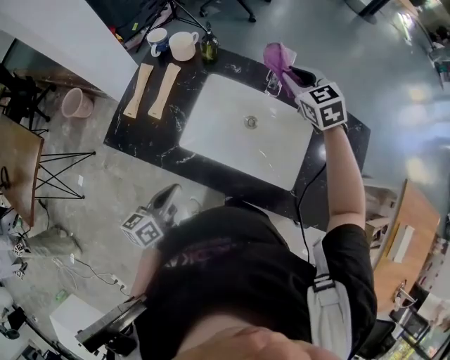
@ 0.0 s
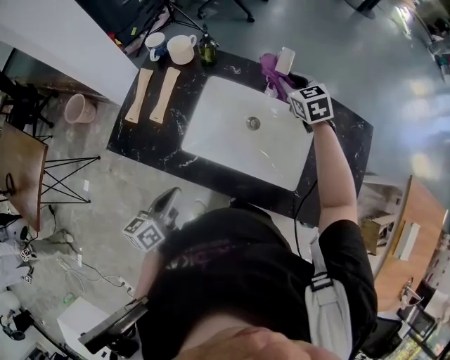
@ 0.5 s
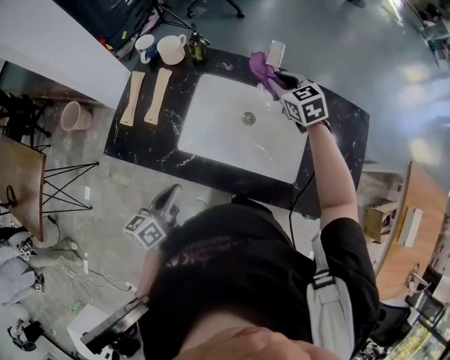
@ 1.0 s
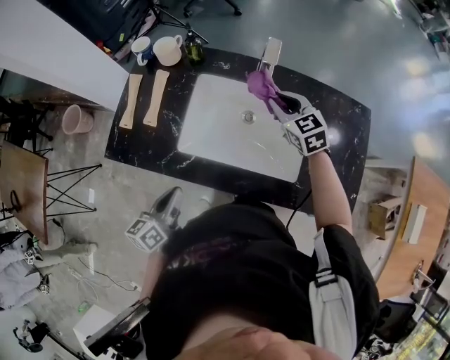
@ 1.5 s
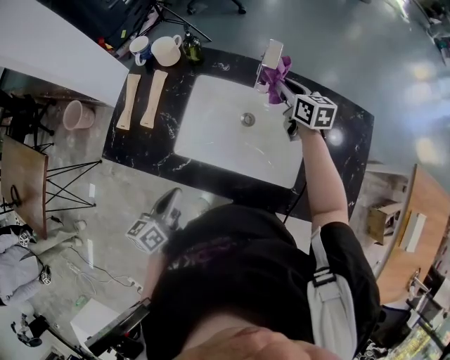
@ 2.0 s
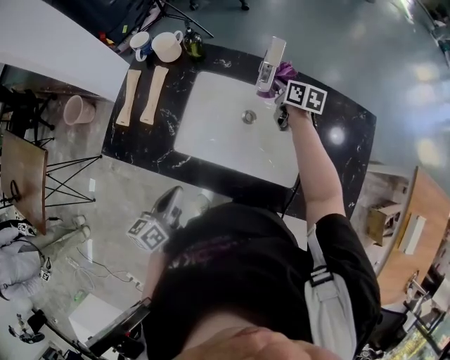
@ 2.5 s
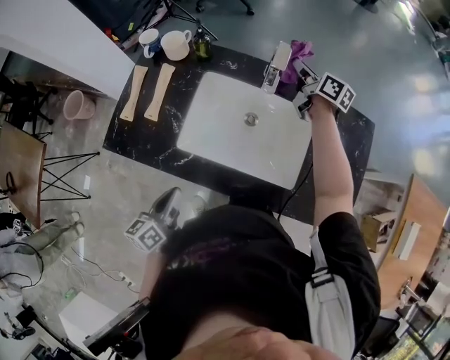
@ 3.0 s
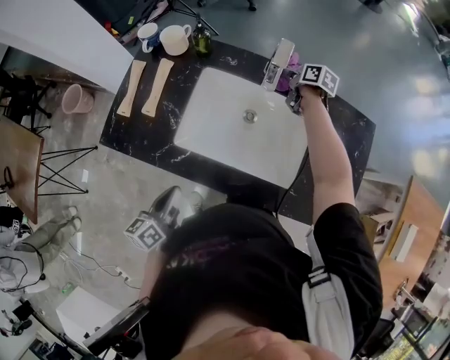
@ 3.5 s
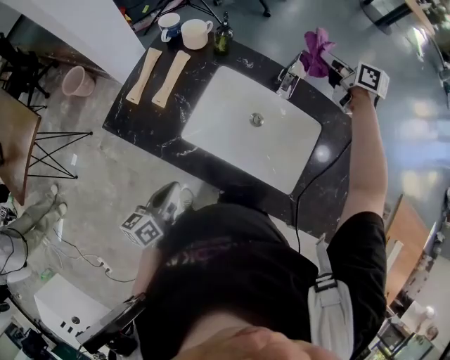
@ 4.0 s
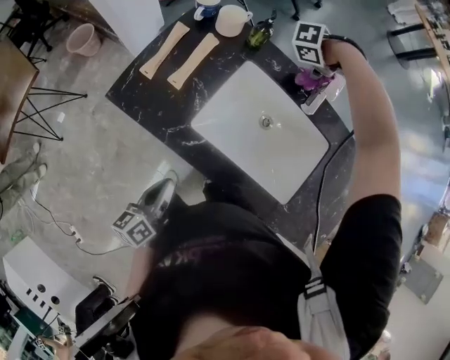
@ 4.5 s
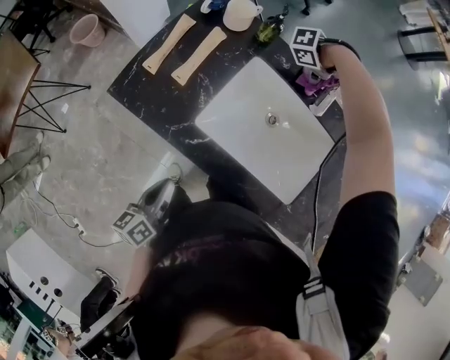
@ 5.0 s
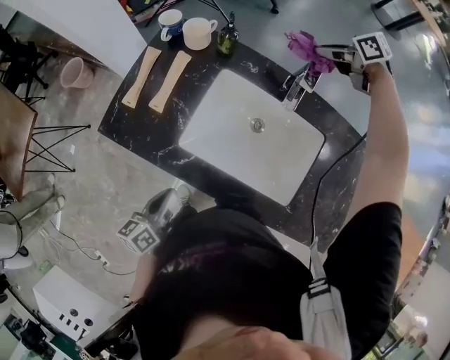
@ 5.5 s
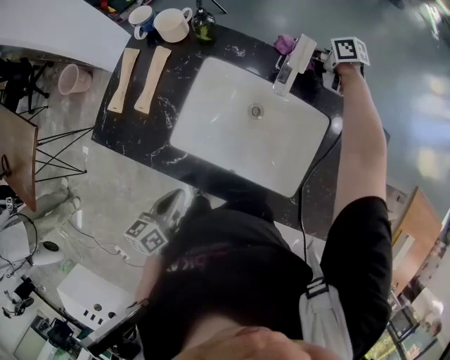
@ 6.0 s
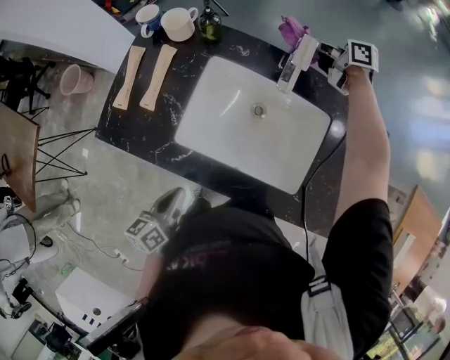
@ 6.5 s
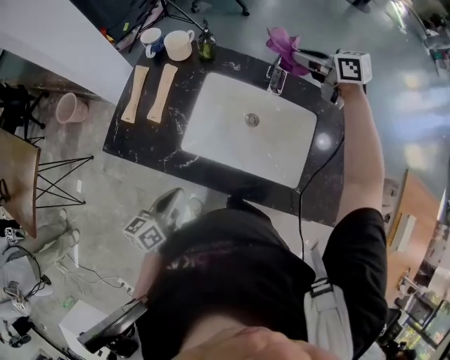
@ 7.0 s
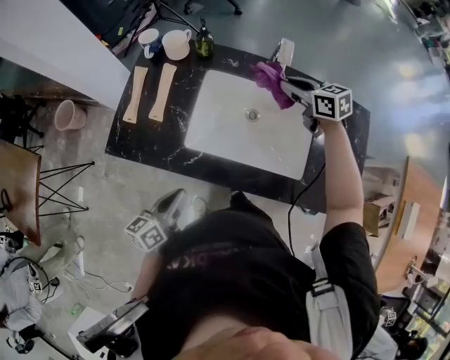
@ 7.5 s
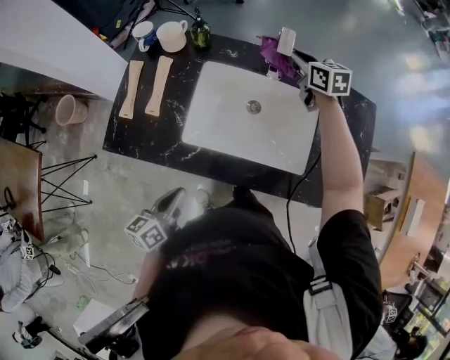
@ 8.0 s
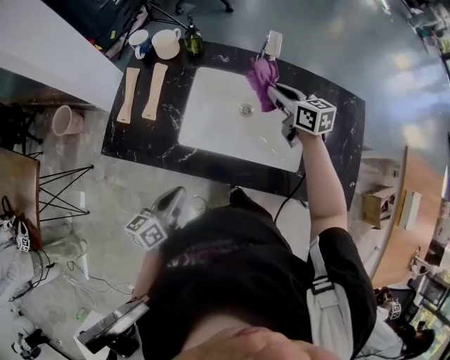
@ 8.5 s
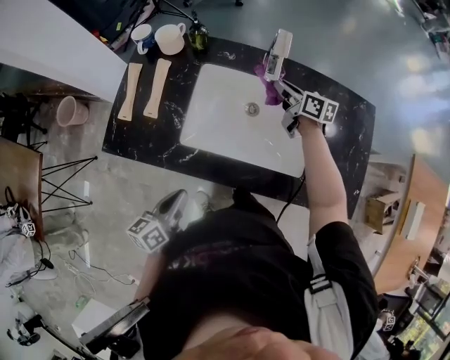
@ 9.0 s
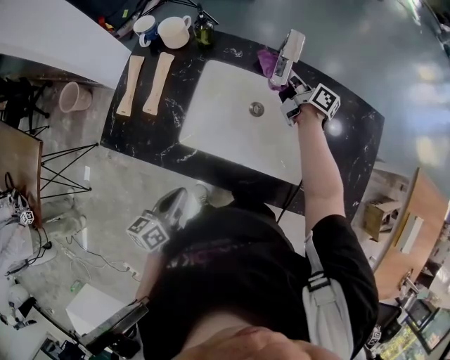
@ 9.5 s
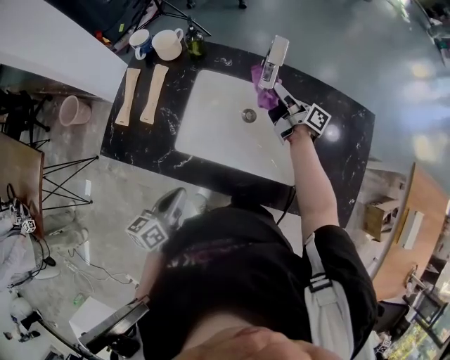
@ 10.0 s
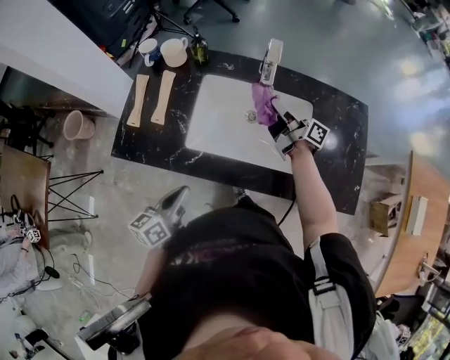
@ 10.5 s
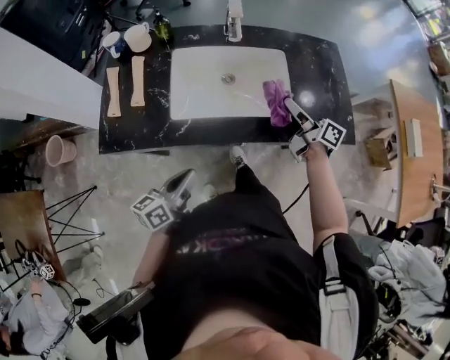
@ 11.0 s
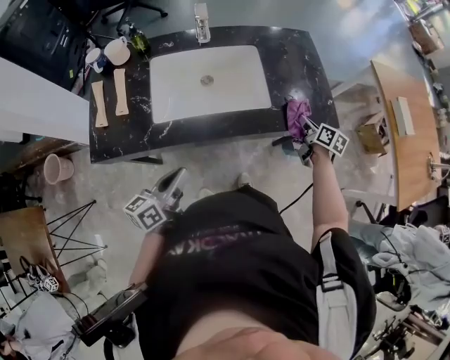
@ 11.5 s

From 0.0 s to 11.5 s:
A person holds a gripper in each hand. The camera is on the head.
From 0.0 s to 2.0 s: The right gripper is displaced downward by roughly 10 cm, and rolls clockwise, seen from behind, by about 40 degrees.
From 2.0 s to 4.0 s: The right gripper moves up and down over about 20 cm, changing direction 3 times.
From 4.0 s to 6.0 s: The right gripper swings up and down, some 20 cm each way, with 2 reversals, and turns by approximately 20 degrees.
From 6.0 s to 7.5 s: The right gripper shifts approximately 20 cm backward, upward and to the left, and turns by roughly 30 degrees. Meanwhile the left gripper goes approximately 5 cm to the left.
From 7.5 s to 9.5 s: The right gripper moves forward and backward over some 10 cm, changing direction 2 times, and twists roughly 50 degrees clockwise, seen from behind.
From 9.5 s to 11.5 s: The left gripper changes place by roughly 10 cm, and turns by roughly 30 degrees. The right gripper reaches about 5 cm upward, then returns, and changes its angle by some 40 degrees.

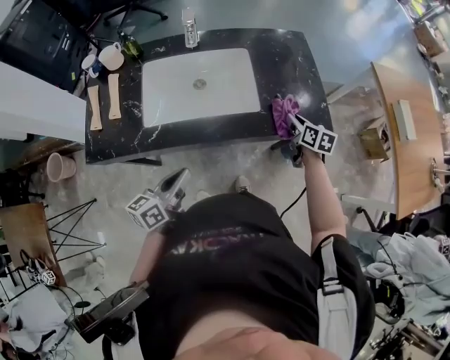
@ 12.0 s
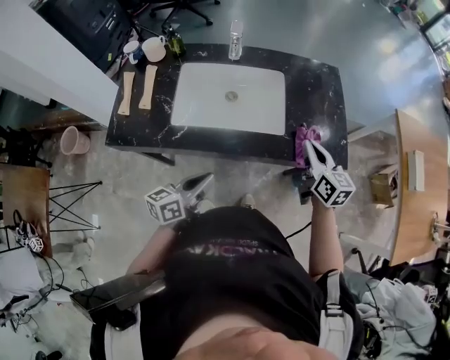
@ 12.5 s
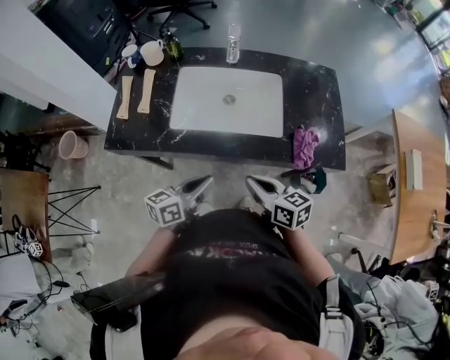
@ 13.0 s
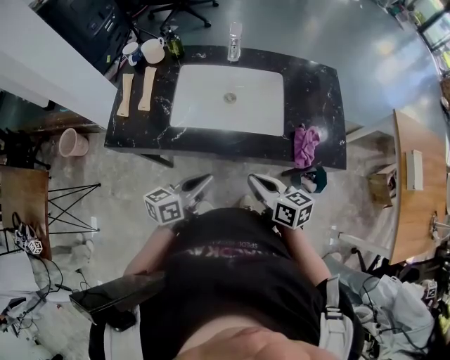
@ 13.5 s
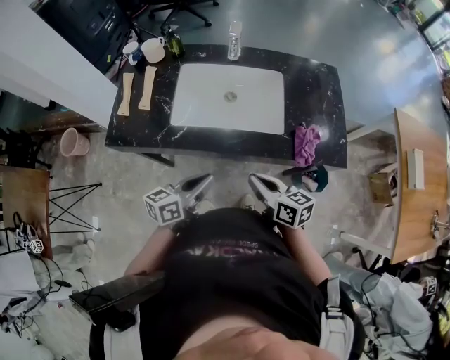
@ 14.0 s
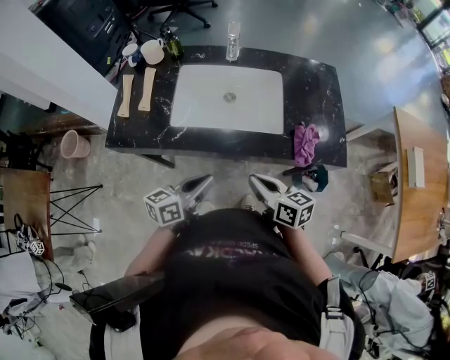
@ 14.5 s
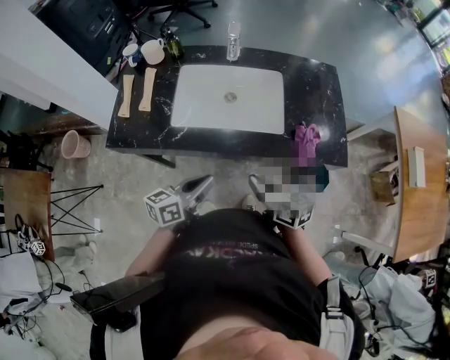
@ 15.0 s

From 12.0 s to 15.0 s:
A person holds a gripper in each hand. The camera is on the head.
From 12.0 s to 13.5 s: The right gripper heads to the left and backward, covering about 30 cm, turns by roughly 40 degrees, and closes.
From 13.5 s to 15.0 s: Both grippers stay put.

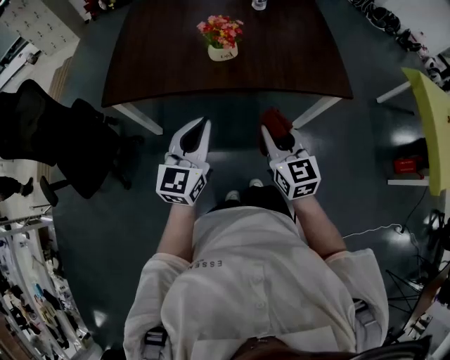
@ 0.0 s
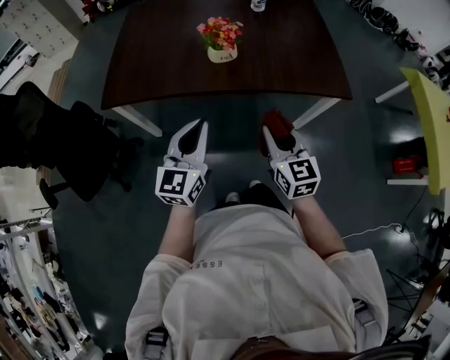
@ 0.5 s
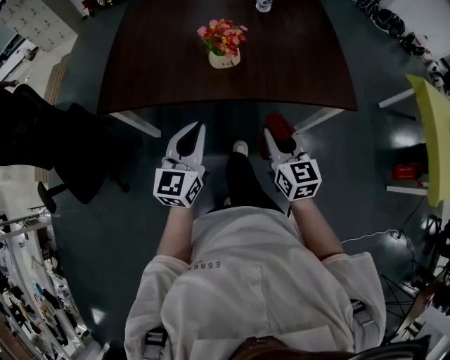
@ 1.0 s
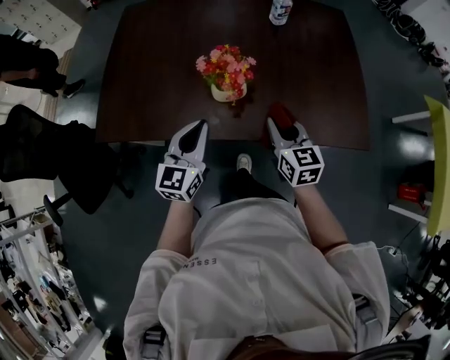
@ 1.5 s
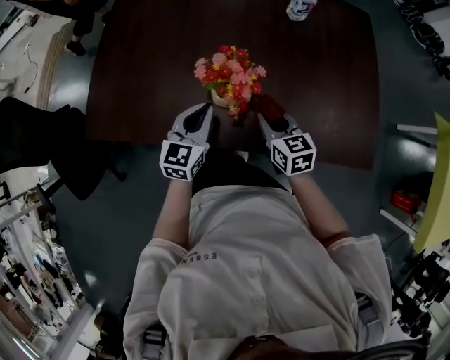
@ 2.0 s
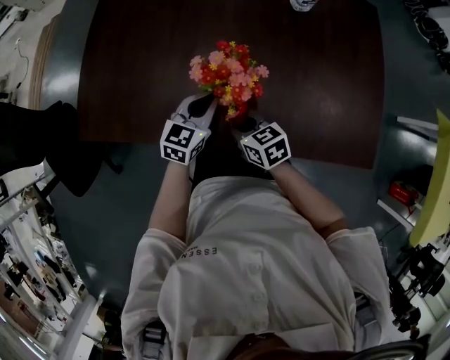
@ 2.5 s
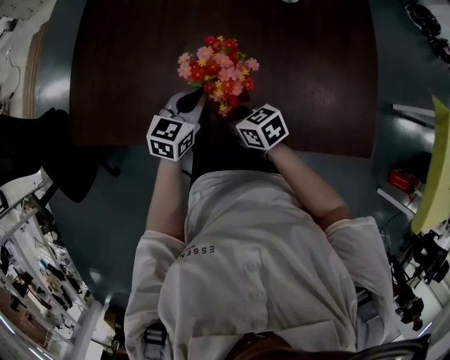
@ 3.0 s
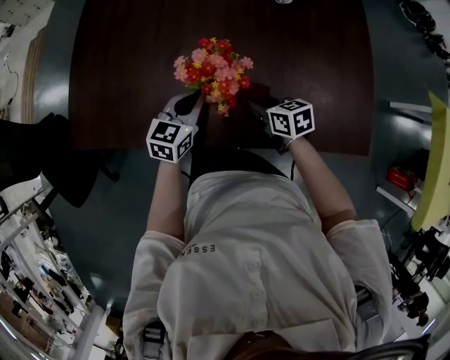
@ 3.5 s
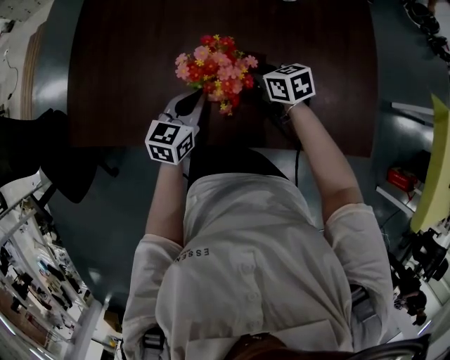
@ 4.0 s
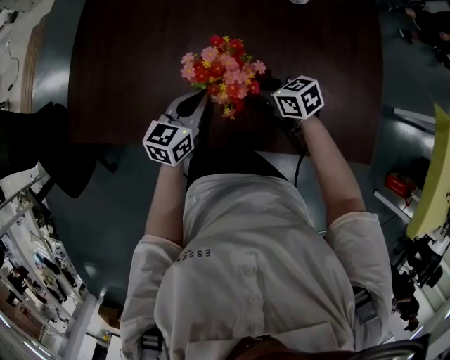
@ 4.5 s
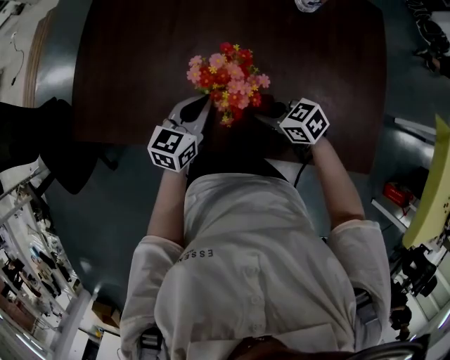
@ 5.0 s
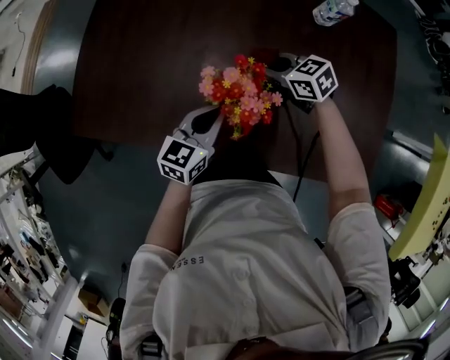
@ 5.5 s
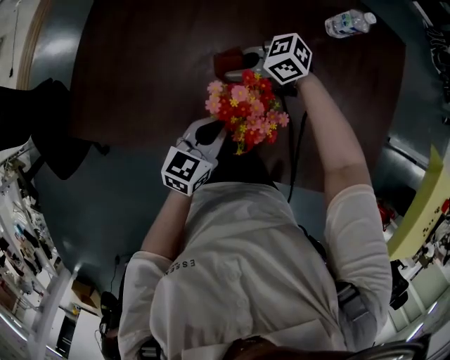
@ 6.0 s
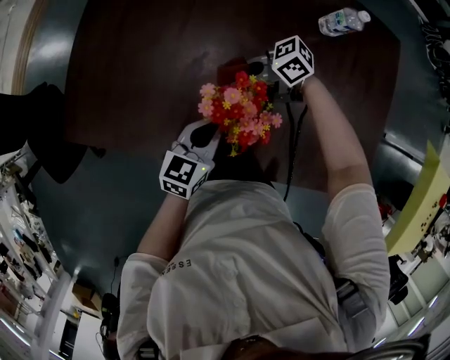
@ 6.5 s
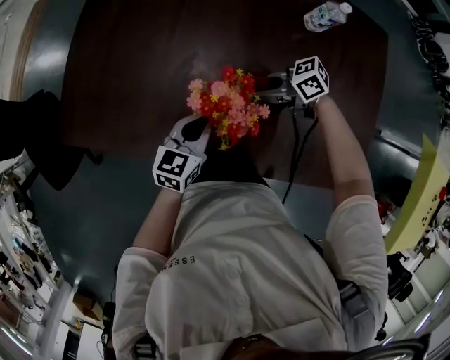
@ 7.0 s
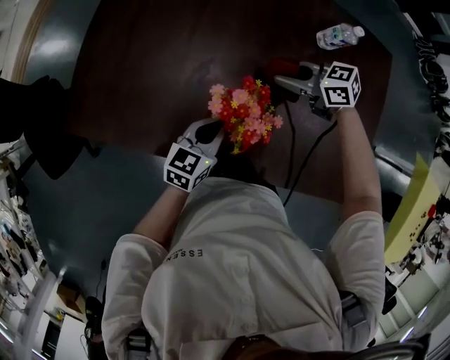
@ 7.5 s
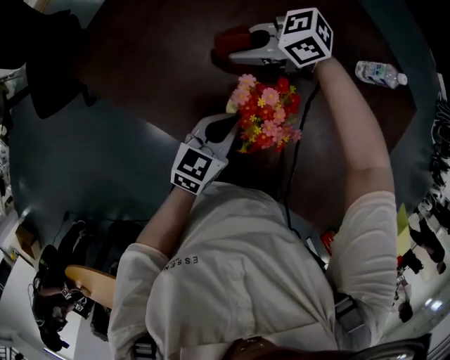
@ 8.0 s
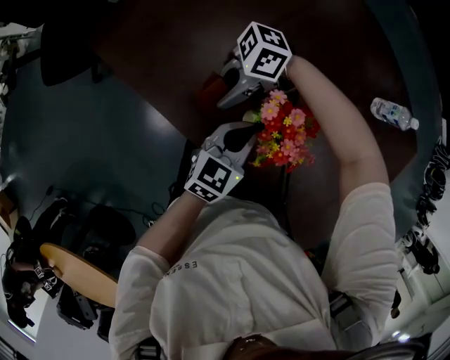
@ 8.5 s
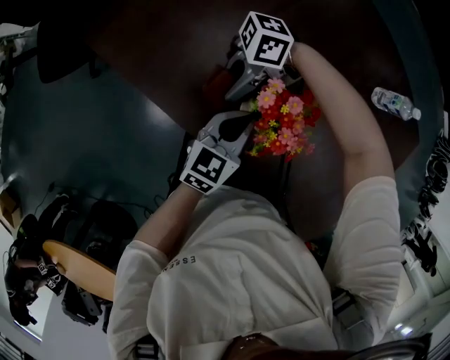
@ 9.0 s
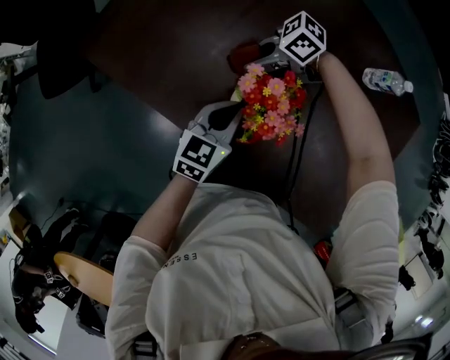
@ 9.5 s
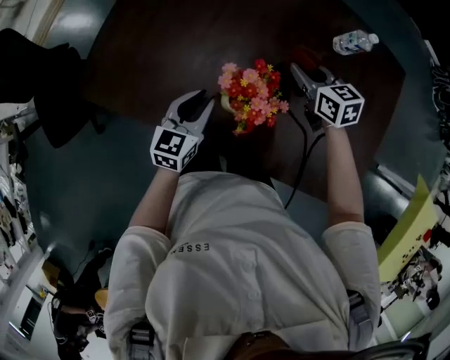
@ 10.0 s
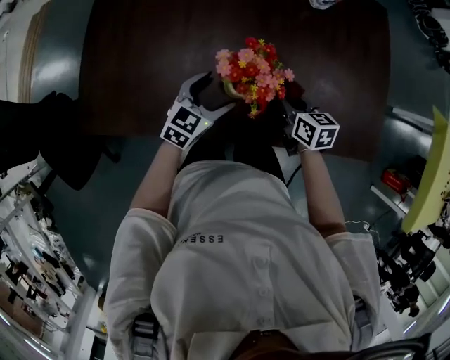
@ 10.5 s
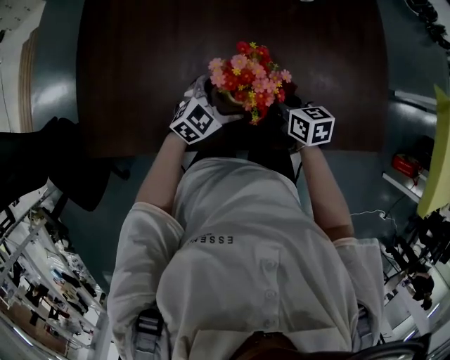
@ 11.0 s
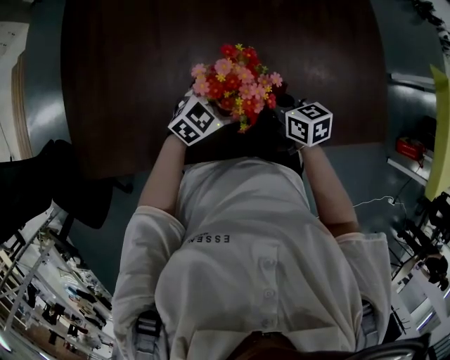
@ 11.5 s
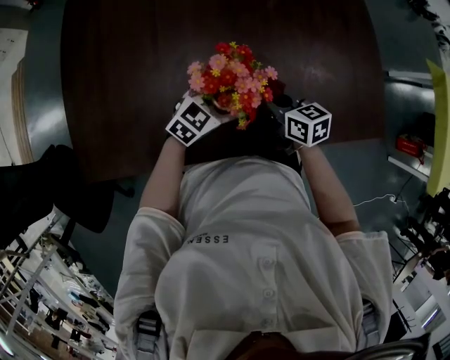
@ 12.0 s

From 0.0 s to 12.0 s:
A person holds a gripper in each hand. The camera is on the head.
From 0.0 s to 2.0 s: The grippers both shift forward and downward by approximately 35 cm. The right gripper turns by approximately 20 degrees.
From 2.0 s to 4.0 s: The left gripper goes some 5 cm downward. Meanwhile the right gripper shifts some 10 cm forward and downward.
From 4.0 s to 6.0 s: The right gripper changes place by approximately 15 cm, and turns by about 50 degrees.
From 6.0 s to 8.0 s: The right gripper ends up some 10 cm from where it was, and turns by about 20 degrees.
From 8.0 s to 10.0 s: The left gripper shifts by about 5 cm. The right gripper shifts by approximately 20 cm, and changes its angle by approximately 70 degrees.
From 10.0 s to 12.0 s: The right gripper shifts by some 20 cm, and rotates some 30 degrees, while the left gripper moves approximately 15 cm, changes its angle by roughly 60 degrees, and opens up.
